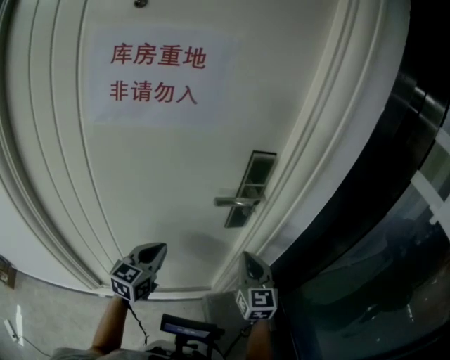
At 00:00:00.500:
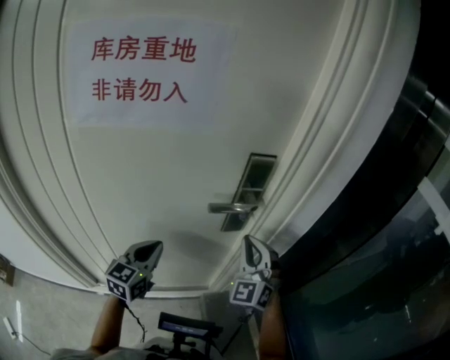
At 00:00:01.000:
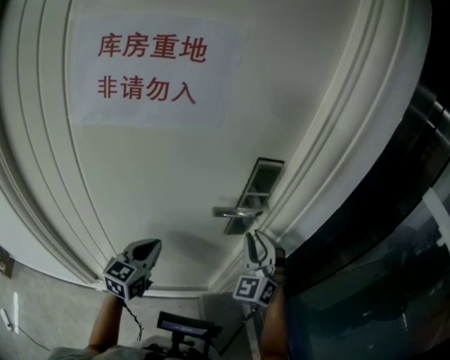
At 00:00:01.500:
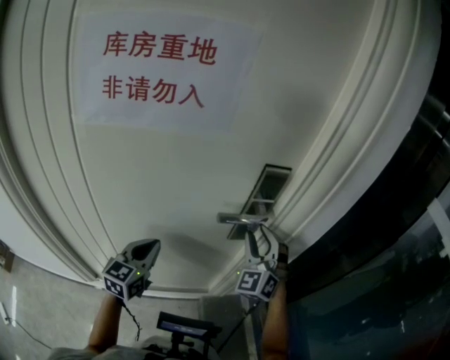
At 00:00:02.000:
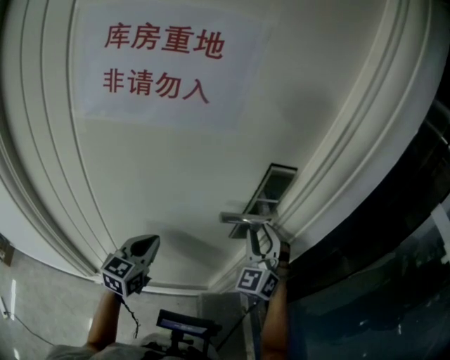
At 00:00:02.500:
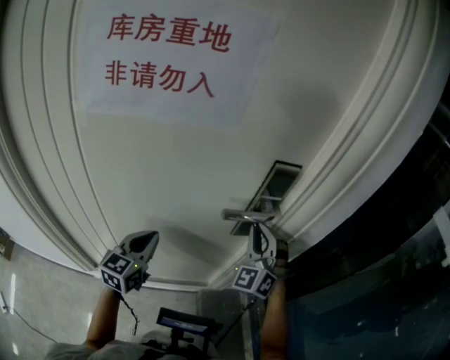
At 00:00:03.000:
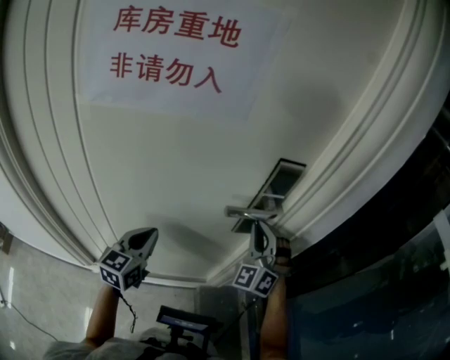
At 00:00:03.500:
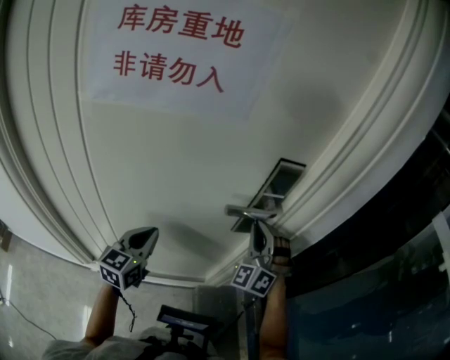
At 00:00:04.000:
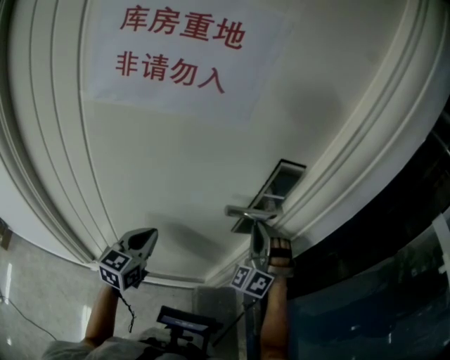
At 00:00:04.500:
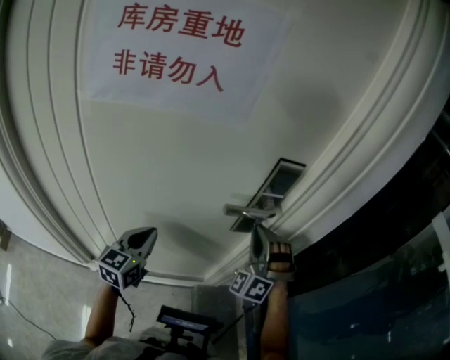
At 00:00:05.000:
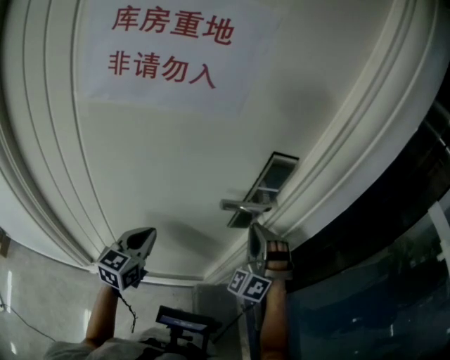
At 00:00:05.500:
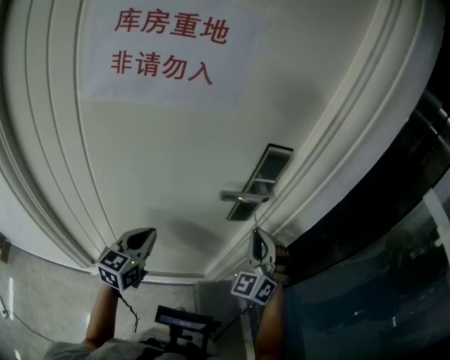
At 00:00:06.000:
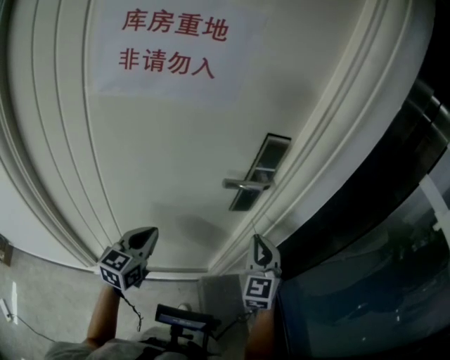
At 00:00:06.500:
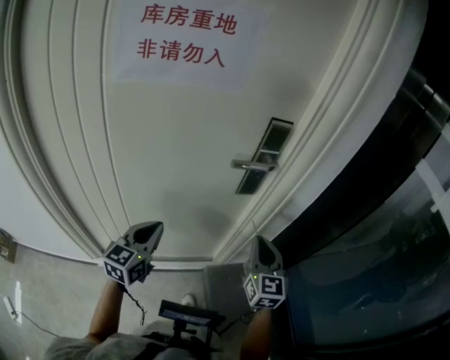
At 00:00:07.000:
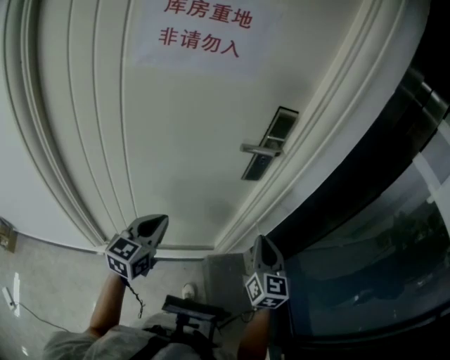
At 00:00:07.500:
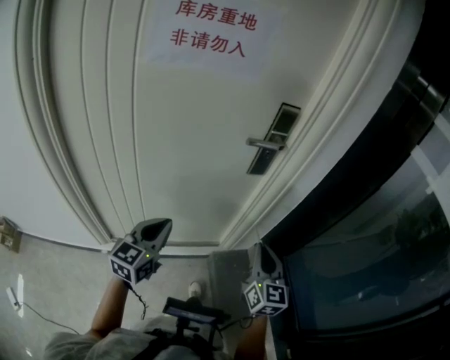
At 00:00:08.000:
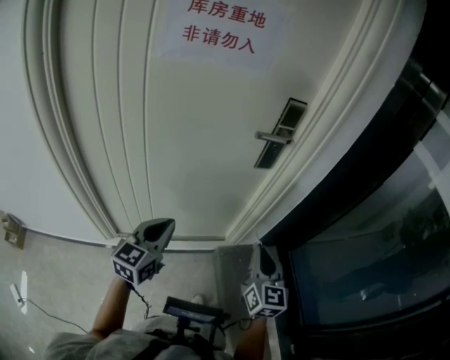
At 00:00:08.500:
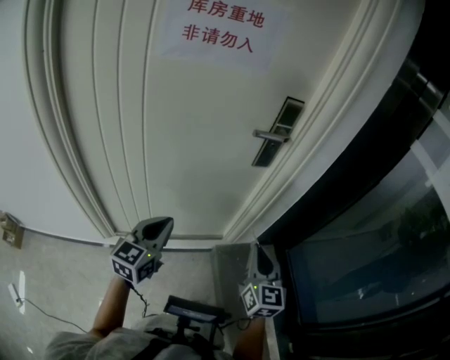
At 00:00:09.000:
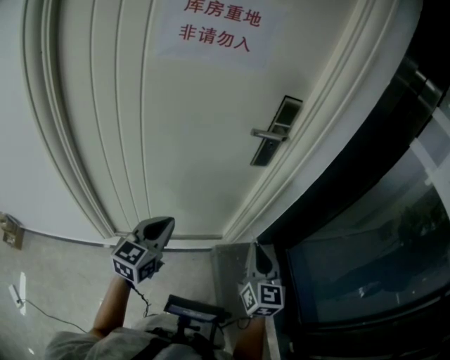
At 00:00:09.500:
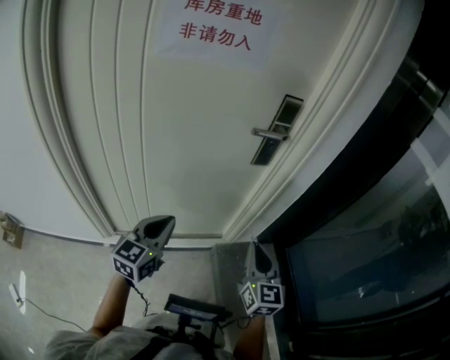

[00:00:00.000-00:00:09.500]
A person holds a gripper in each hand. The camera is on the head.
00:00:00.000 to 00:00:02.000: The right gripper shifts approximately 15 cm forward and upward, twists roughly 50 degrees counterclockwise, seen from behind, and opens up, while the left gripper moves approximately 5 cm.
00:00:02.000 to 00:00:04.000: The right gripper changes its angle by approximately 30 degrees, and closes.
00:00:04.000 to 00:00:05.500: The right gripper shifts approximately 5 cm backward, and swivels approximately 20 degrees.
00:00:05.500 to 00:00:07.500: The grippers both shift backward by approximately 20 cm. The right gripper rolls clockwise, seen from behind, by approximately 60 degrees.
00:00:07.500 to 00:00:09.500: The right gripper shifts by about 5 cm.

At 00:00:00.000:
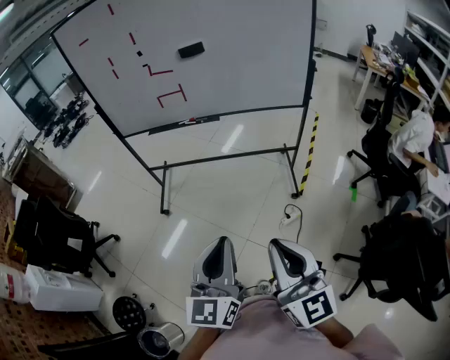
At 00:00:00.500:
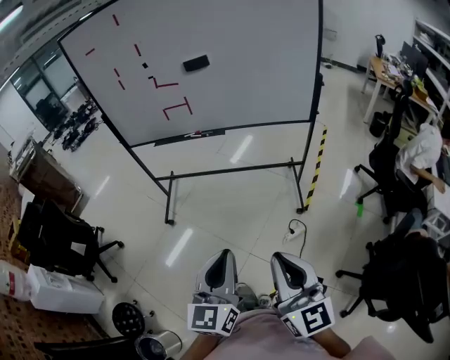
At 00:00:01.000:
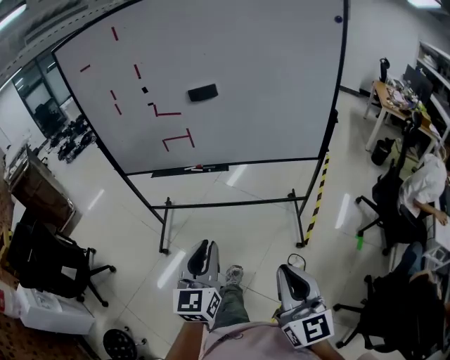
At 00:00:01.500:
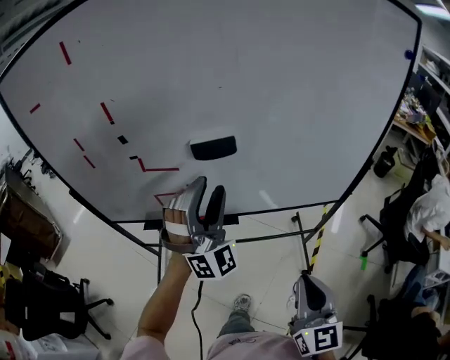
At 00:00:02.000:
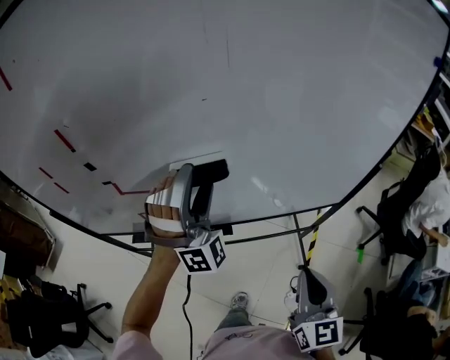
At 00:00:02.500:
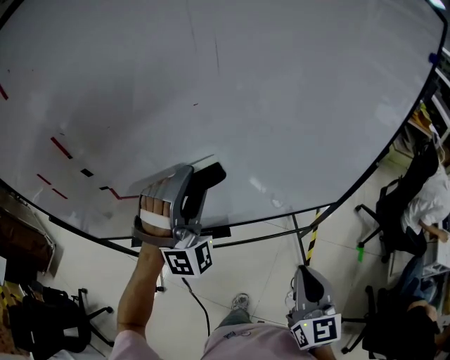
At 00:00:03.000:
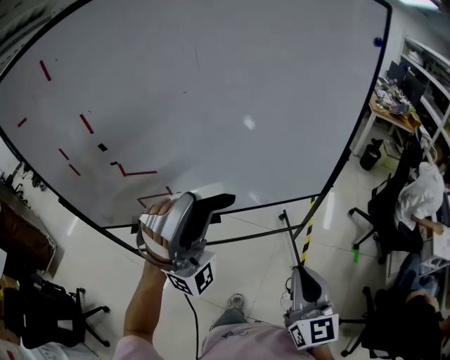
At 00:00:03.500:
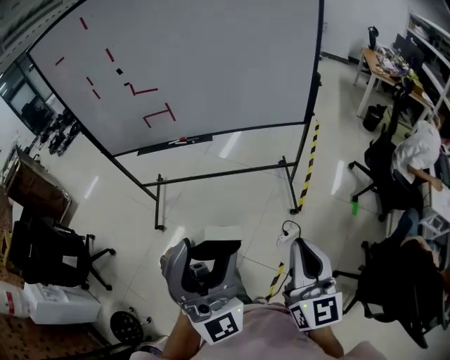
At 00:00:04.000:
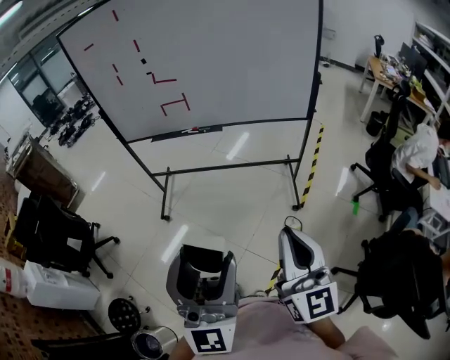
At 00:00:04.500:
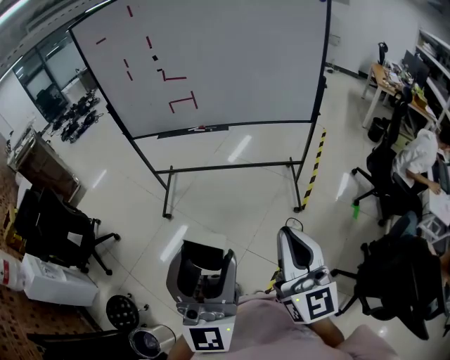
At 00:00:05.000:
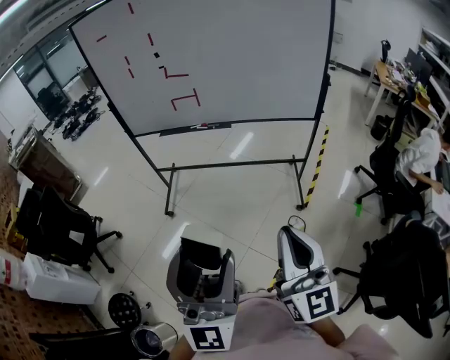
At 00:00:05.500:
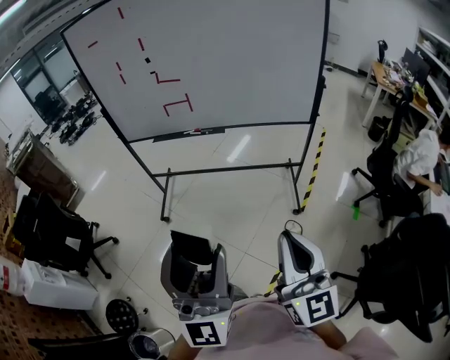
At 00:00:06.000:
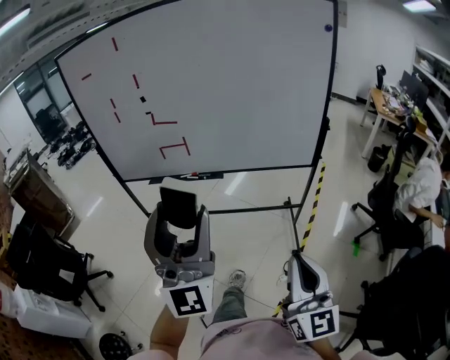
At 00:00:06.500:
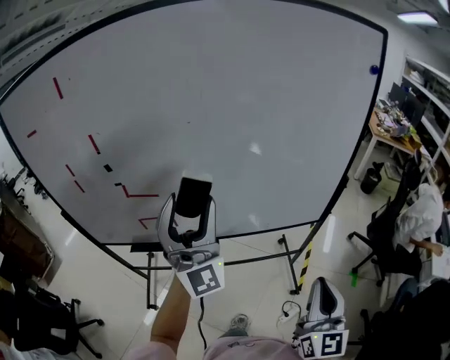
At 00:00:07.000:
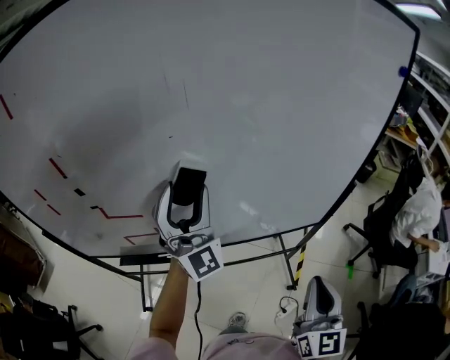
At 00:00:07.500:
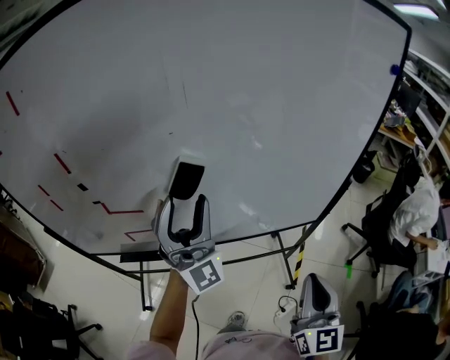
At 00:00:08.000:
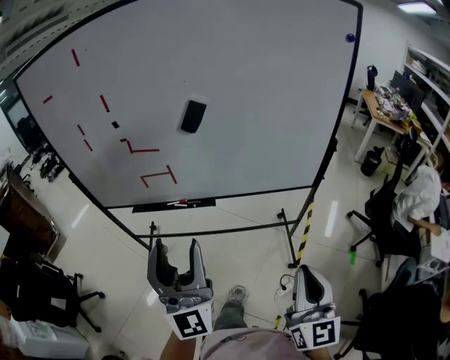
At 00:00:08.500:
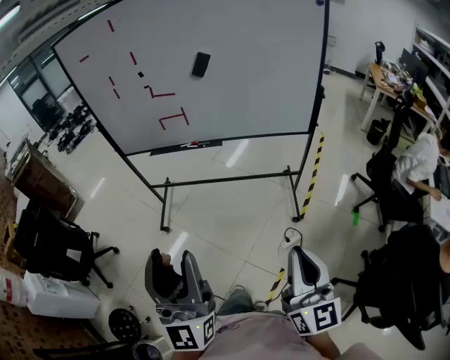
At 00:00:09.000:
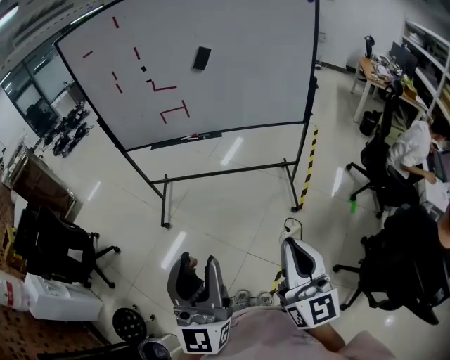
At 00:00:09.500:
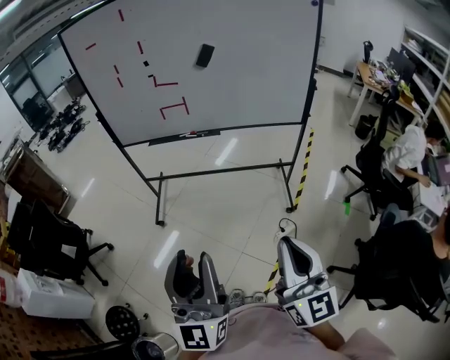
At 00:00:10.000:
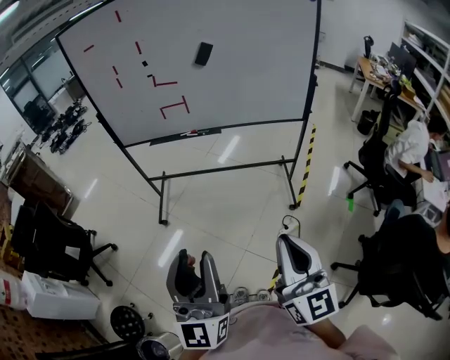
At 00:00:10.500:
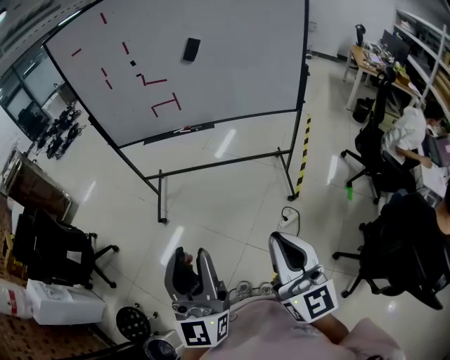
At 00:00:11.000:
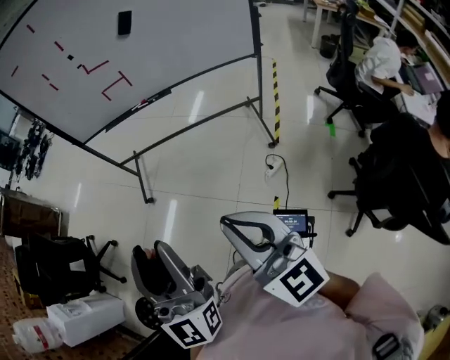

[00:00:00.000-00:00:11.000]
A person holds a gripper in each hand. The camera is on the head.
00:00:00.000 to 00:00:02.000: The two grippers travel together, forward, some 70 cm. The left gripper rotates around the line of its fingers by about 90 degrees, clockwise from behind, and opens up. Meanwhile the right gripper swivels approximately 30 degrees.
00:00:02.000 to 00:00:03.500: The two grippers travel together, backward, some 50 cm. The left gripper swivels approximately 40 degrees.
00:00:03.500 to 00:00:05.500: The grippers both shift backward and to the left by about 10 cm. The left gripper changes its angle by roughly 30 degrees.
00:00:05.500 to 00:00:07.500: The pair of grippers is taken forward, about 60 cm. The right gripper swivels roughly 30 degrees, while the left gripper rotates about 30 degrees.
00:00:07.500 to 00:00:09.000: Both grippers are carried backward, roughly 60 cm. The left gripper rotates about 40 degrees. Meanwhile the right gripper rotates approximately 20 degrees.
00:00:09.000 to 00:00:11.000: The right gripper travels to the left by approximately 10 cm.

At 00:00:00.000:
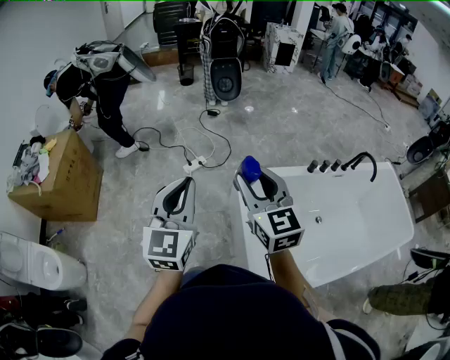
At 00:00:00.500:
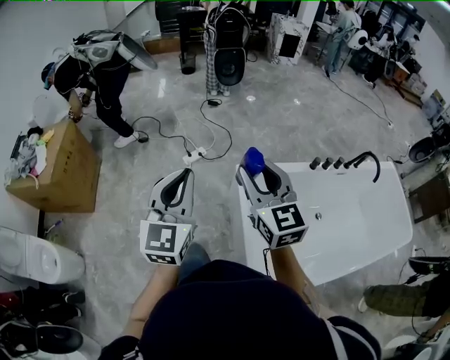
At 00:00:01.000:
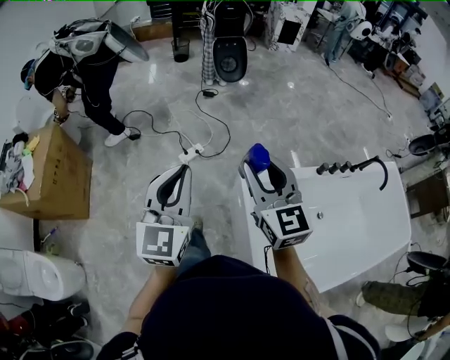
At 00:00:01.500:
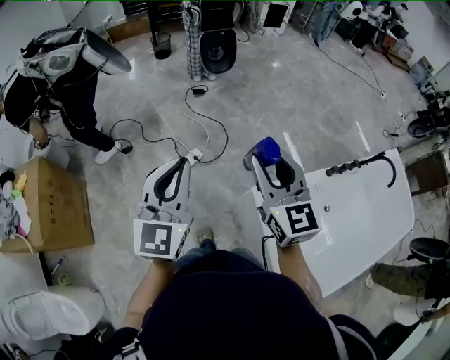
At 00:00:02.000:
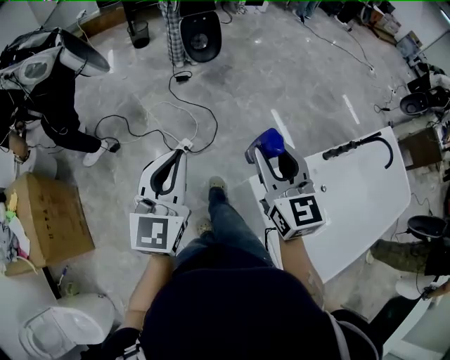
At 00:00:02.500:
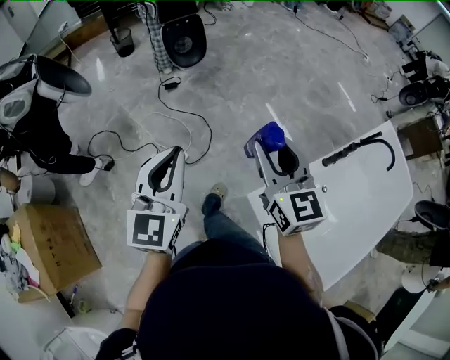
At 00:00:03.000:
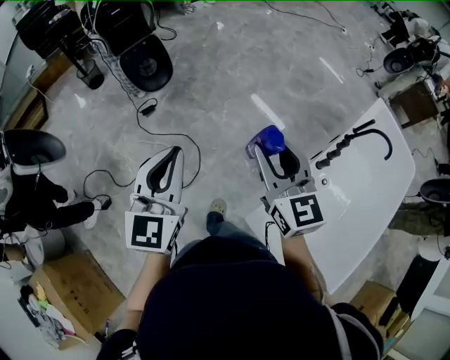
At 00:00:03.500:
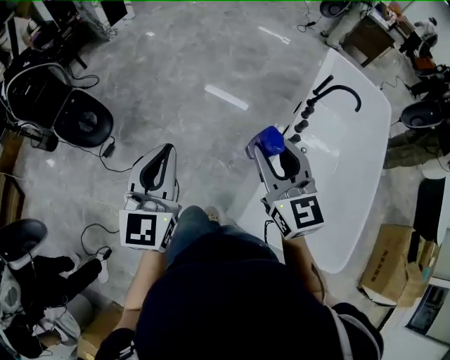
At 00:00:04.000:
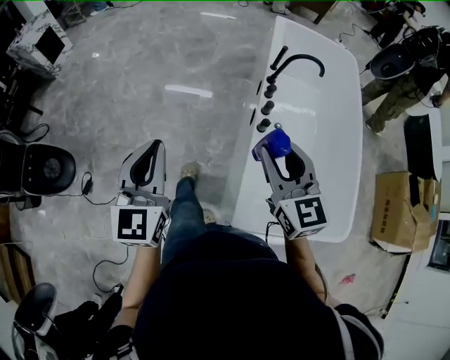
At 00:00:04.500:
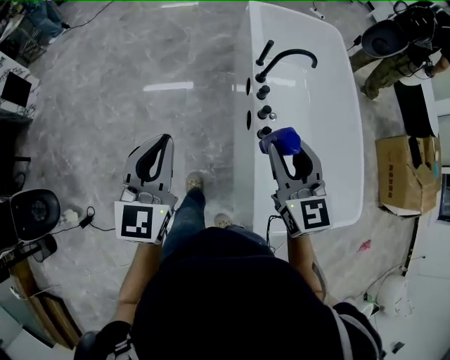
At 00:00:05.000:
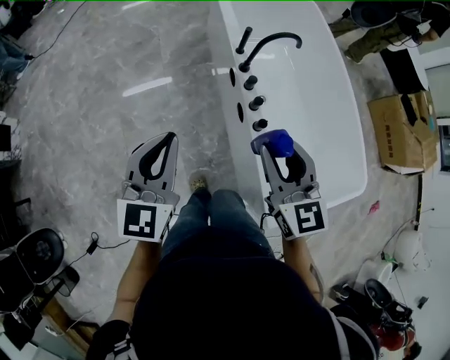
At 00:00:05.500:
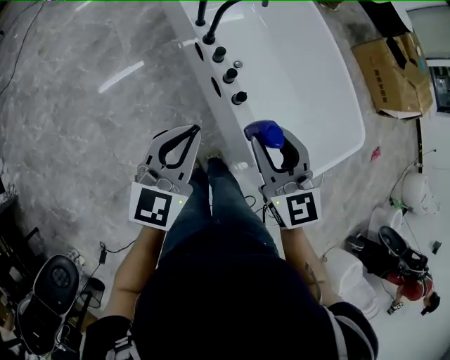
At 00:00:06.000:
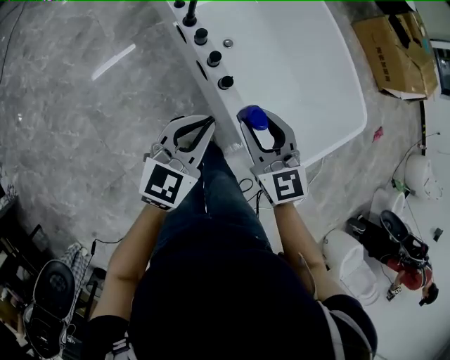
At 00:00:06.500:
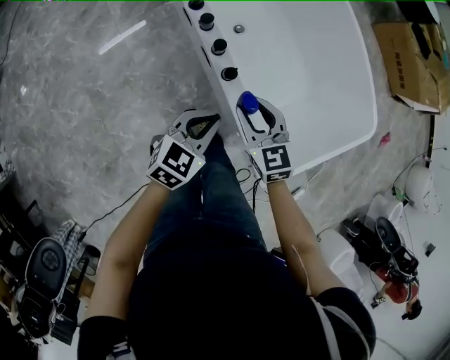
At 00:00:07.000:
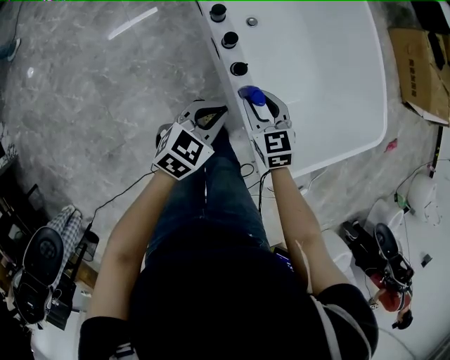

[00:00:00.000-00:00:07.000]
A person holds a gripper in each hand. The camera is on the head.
00:00:00.000 to 00:00:02.000: Both grippers are carried forward, some 40 cm.
00:00:02.000 to 00:00:03.500: The left gripper moves some 50 cm, and swivels some 40 degrees. Meanwhile the right gripper changes place by about 35 cm, and changes its angle by approximately 40 degrees.
00:00:03.500 to 00:00:05.000: The left gripper changes place by roughly 40 cm, and changes its angle by approximately 50 degrees, while the right gripper shifts by about 25 cm, and swivels approximately 50 degrees.
00:00:05.000 to 00:00:07.000: The two grippers go approximately 30 cm downward. The right gripper rotates some 30 degrees; the left gripper swivels roughly 50 degrees.
